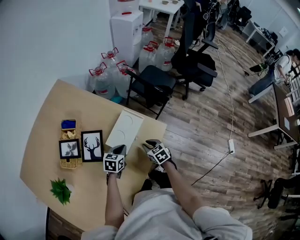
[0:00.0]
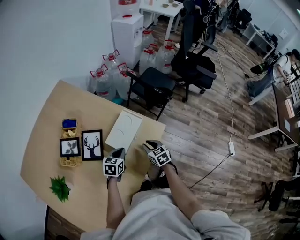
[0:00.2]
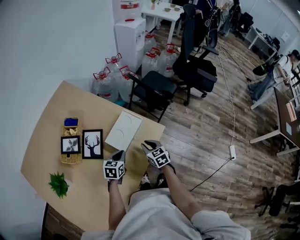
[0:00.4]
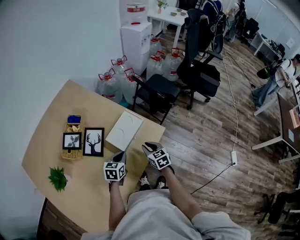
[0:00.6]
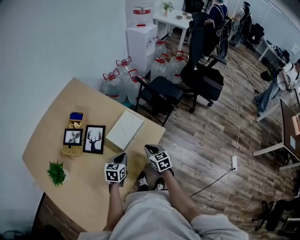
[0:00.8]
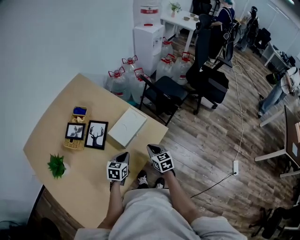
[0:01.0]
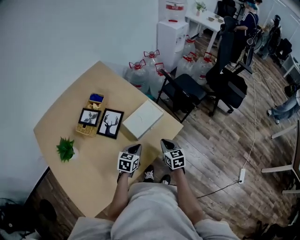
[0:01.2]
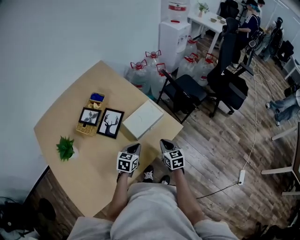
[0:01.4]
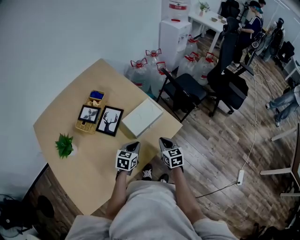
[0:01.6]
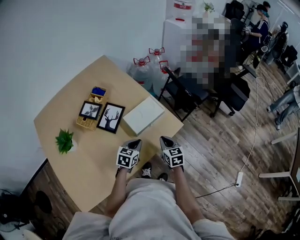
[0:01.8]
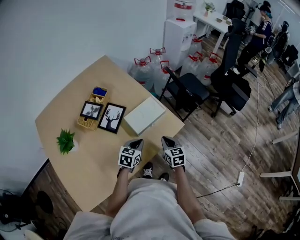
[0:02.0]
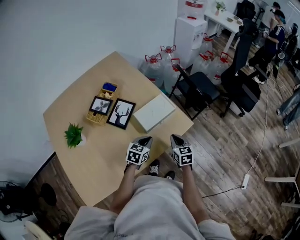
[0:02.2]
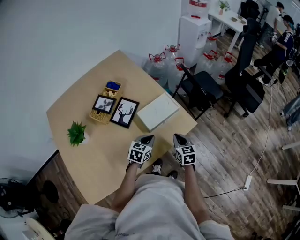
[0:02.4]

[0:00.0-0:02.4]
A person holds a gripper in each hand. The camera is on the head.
0.0 to 1.2 s: The left gripper goes approximately 10 cm backward. The right gripper heads upward, covering about 10 cm.
1.2 to 2.4 s: There are only small adjustments of the grippers.

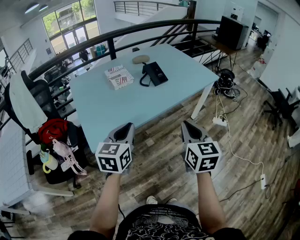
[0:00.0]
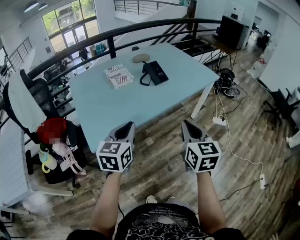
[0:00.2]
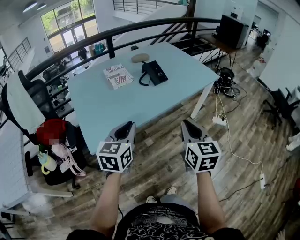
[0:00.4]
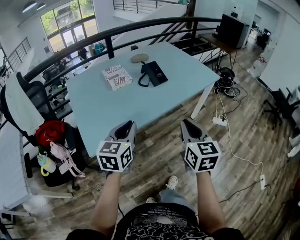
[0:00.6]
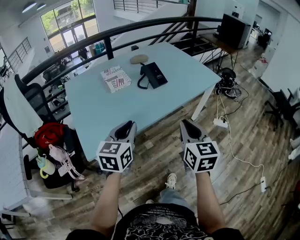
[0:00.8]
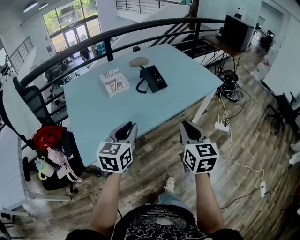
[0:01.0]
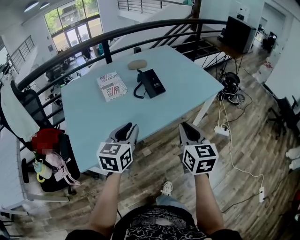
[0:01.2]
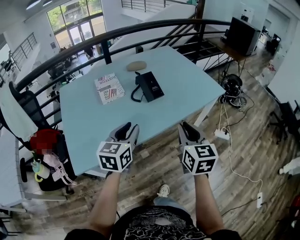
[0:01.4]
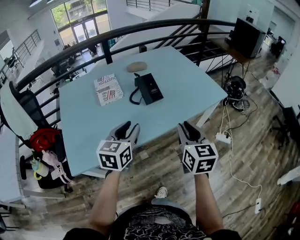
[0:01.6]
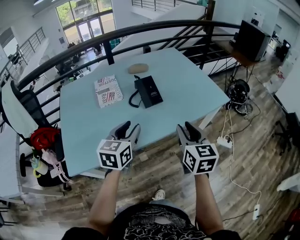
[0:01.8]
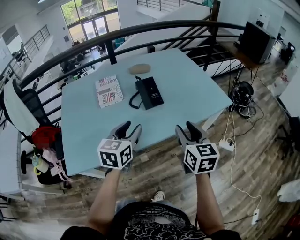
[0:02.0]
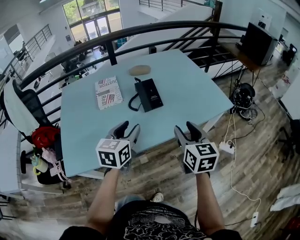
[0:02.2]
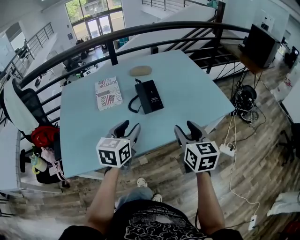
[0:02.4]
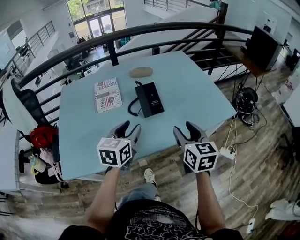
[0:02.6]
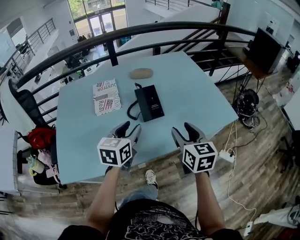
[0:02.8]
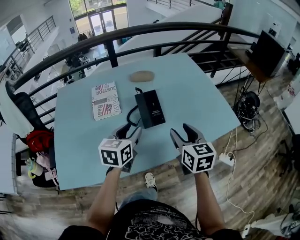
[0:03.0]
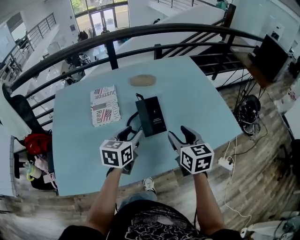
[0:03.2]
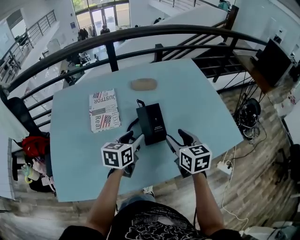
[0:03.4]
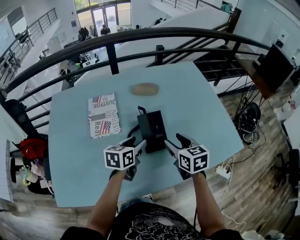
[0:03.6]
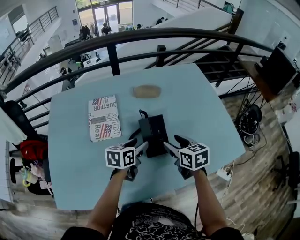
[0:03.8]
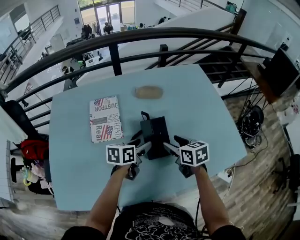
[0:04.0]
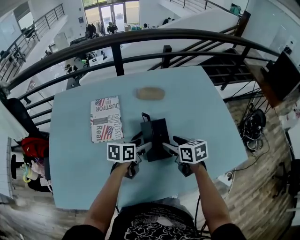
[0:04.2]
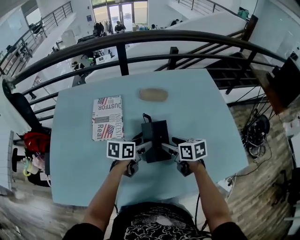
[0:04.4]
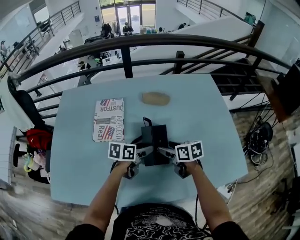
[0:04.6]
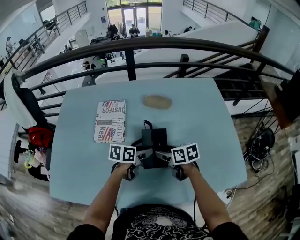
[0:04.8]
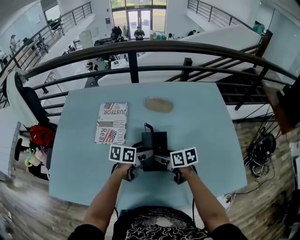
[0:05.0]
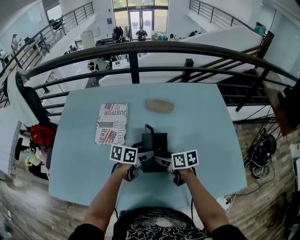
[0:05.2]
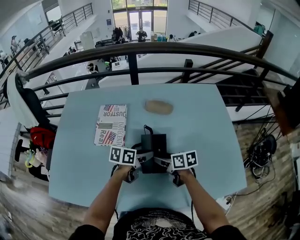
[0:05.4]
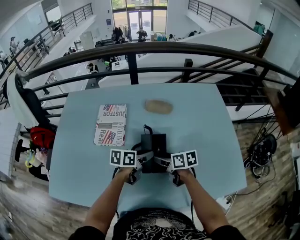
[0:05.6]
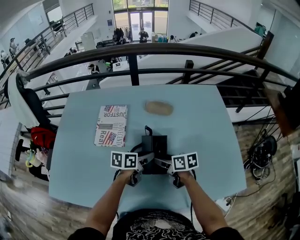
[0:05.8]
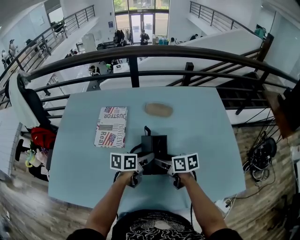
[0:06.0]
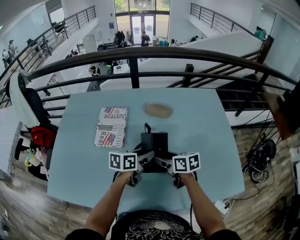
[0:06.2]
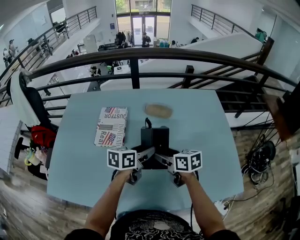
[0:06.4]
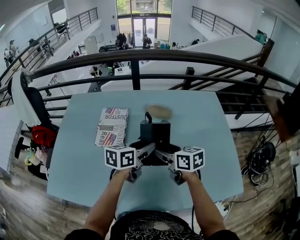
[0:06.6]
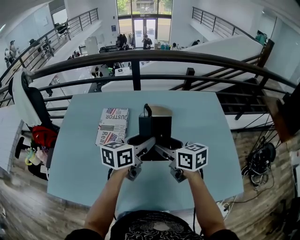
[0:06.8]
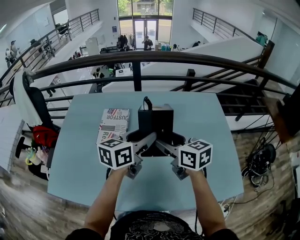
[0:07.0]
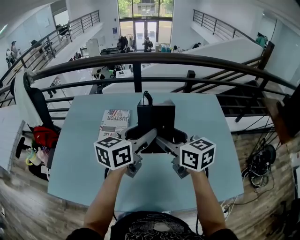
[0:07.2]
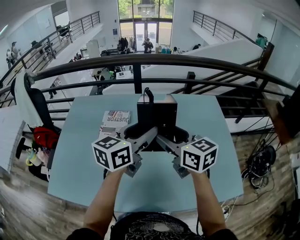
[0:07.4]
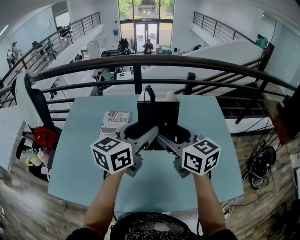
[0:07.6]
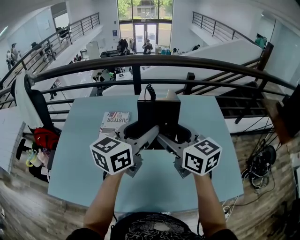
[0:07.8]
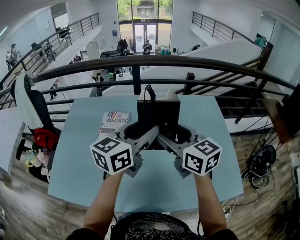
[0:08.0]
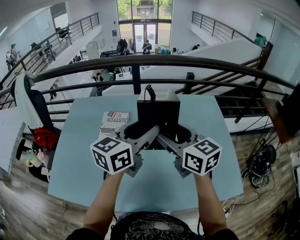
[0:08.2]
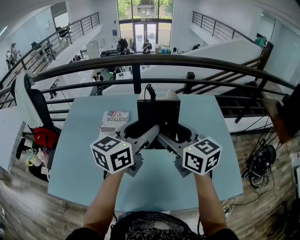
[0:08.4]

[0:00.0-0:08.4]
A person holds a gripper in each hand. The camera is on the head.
0.0 to 1.4 s: The grippers both shift forward by some 20 cm.
1.4 to 2.8 s: The two grippers go approximately 20 cm forward. The right gripper opens its fingers.
2.8 to 4.2 s: Both grippers travel together forward and downward, about 25 cm. The right gripper changes its angle by approximately 30 degrees. The left gripper rotates some 30 degrees.
4.2 to 5.6 s: The right gripper changes place by some 5 cm, and changes its angle by roughly 20 degrees.
5.6 to 7.0 s: The two grippers go about 20 cm upward. The left gripper turns by about 30 degrees. Meanwhile the right gripper changes its angle by some 30 degrees.
7.0 to 8.4 s: Both grippers move upward, some 10 cm.

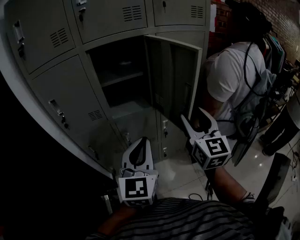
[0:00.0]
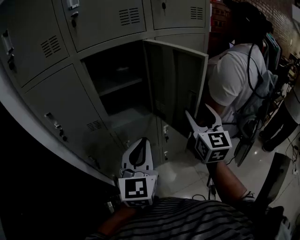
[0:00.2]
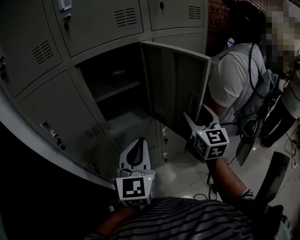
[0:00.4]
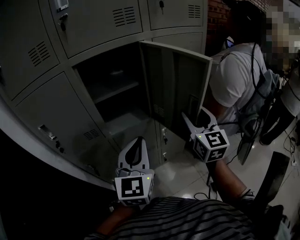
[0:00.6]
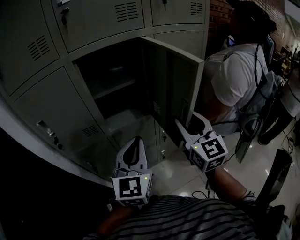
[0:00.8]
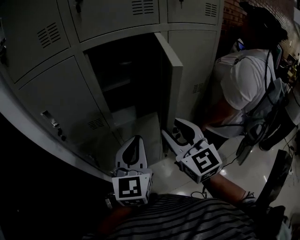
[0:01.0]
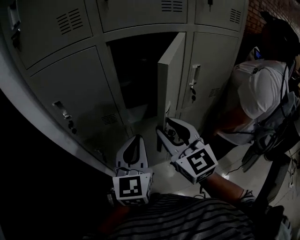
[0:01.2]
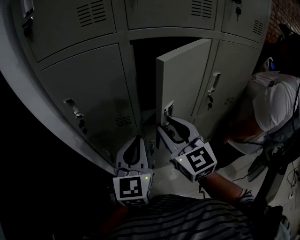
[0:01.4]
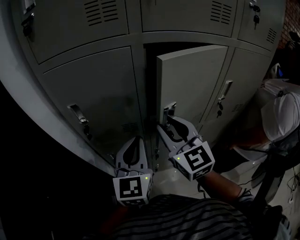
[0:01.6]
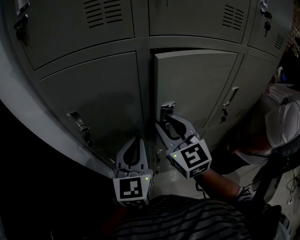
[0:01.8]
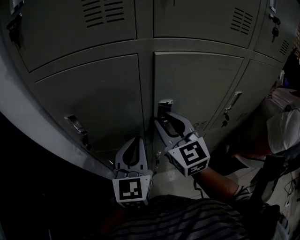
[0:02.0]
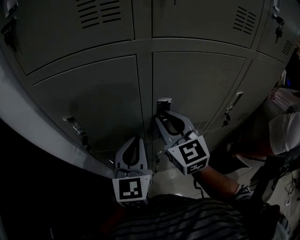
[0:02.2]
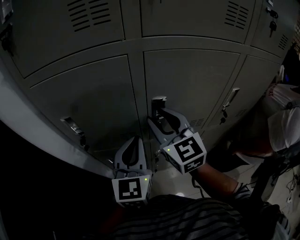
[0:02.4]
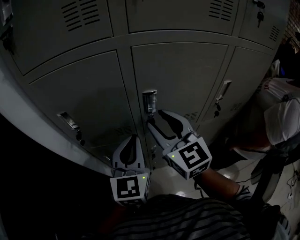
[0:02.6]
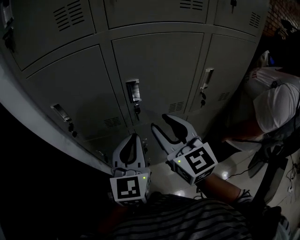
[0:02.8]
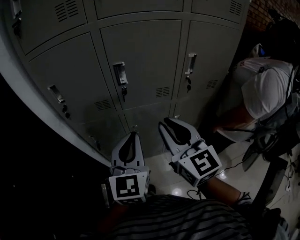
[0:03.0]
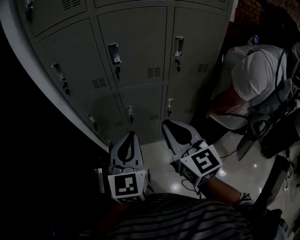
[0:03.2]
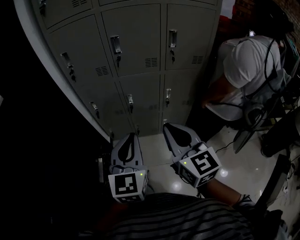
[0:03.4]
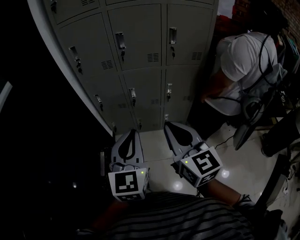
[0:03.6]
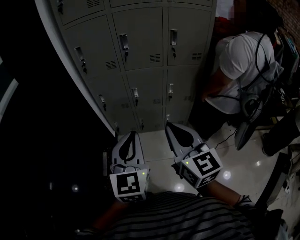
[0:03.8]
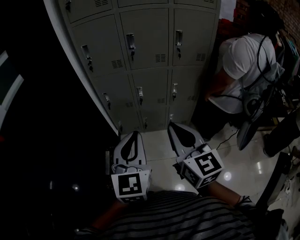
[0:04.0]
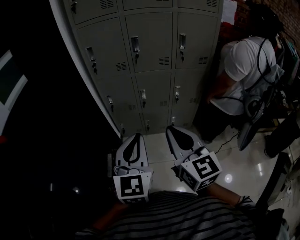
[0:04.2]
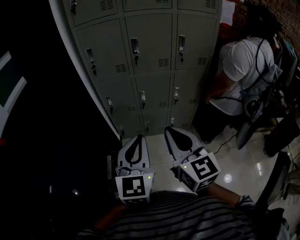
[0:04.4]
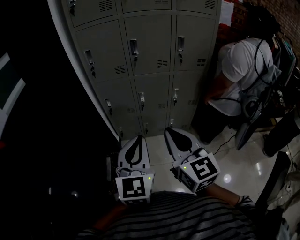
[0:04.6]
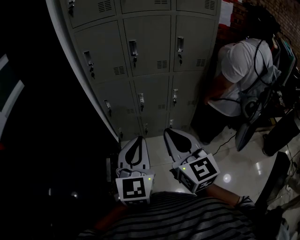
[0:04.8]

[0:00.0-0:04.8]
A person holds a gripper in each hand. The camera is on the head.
0.0 to 1.6 s: The left gripper moves roughly 25 cm; the right gripper moves approximately 35 cm, changes its angle by approximately 30 degrees, and closes its fingers.
1.6 to 3.2 s: The grippers both shift backward and to the right by roughly 30 cm. The right gripper closes its fingers.
3.2 to 4.8 s: The grippers both shift backward by approximately 20 cm.

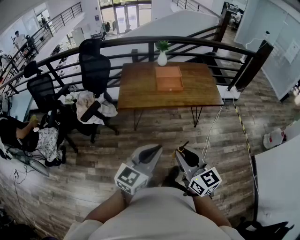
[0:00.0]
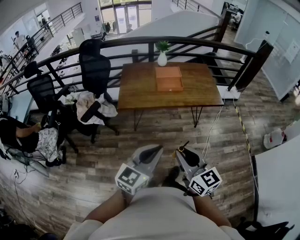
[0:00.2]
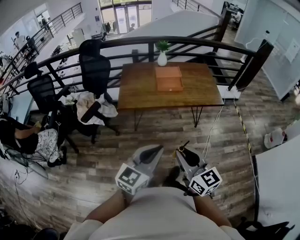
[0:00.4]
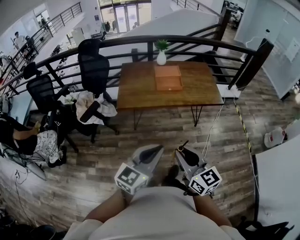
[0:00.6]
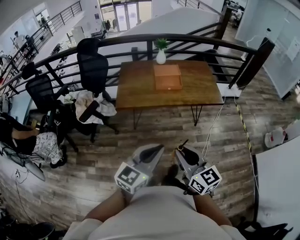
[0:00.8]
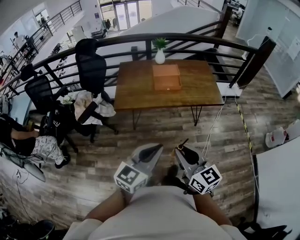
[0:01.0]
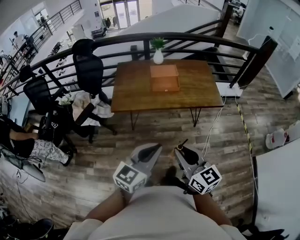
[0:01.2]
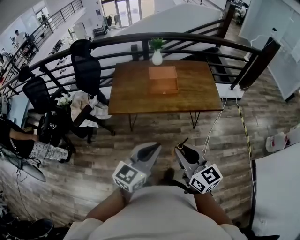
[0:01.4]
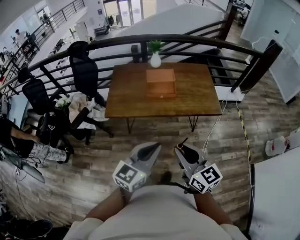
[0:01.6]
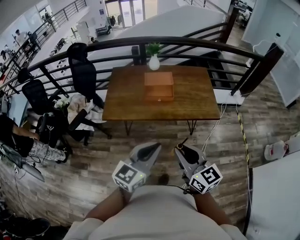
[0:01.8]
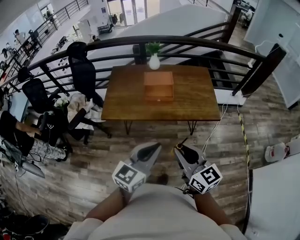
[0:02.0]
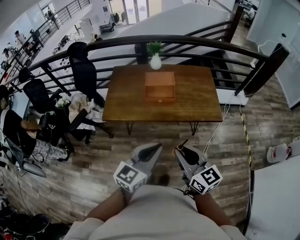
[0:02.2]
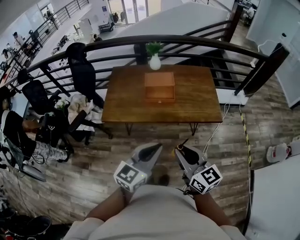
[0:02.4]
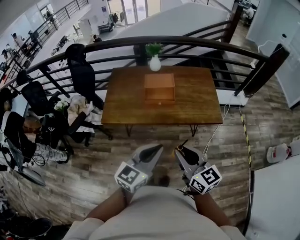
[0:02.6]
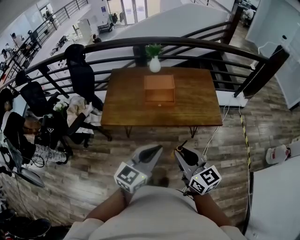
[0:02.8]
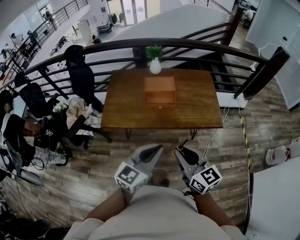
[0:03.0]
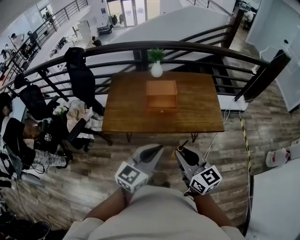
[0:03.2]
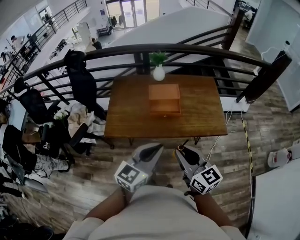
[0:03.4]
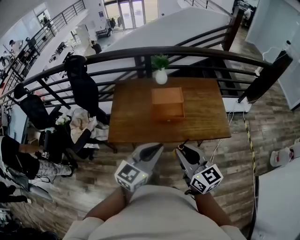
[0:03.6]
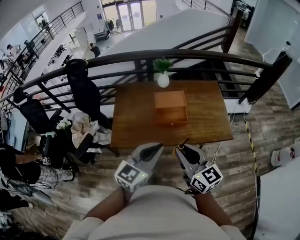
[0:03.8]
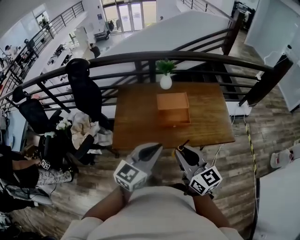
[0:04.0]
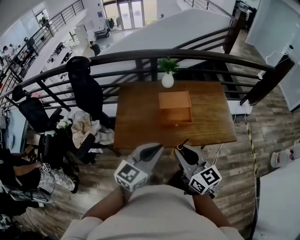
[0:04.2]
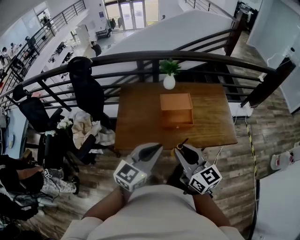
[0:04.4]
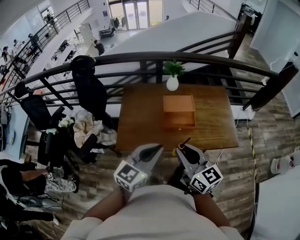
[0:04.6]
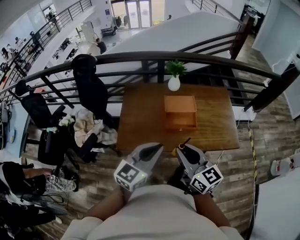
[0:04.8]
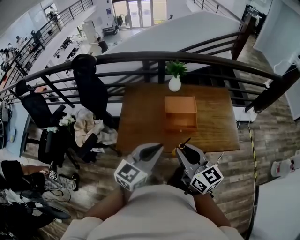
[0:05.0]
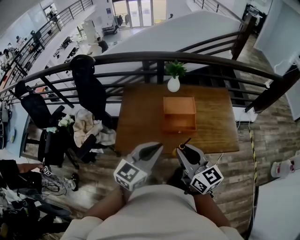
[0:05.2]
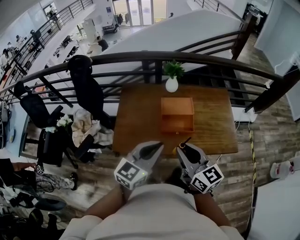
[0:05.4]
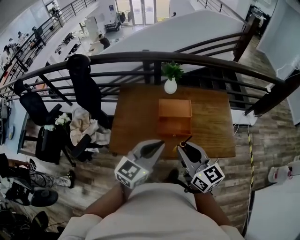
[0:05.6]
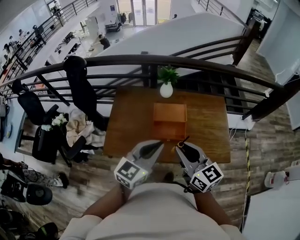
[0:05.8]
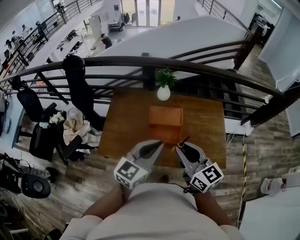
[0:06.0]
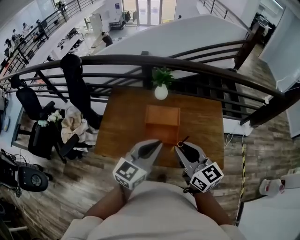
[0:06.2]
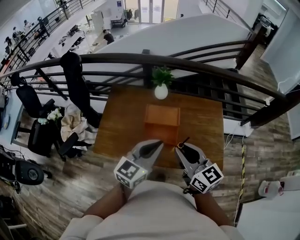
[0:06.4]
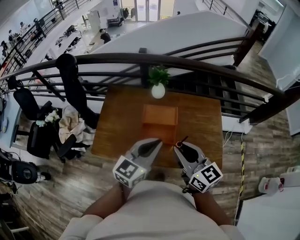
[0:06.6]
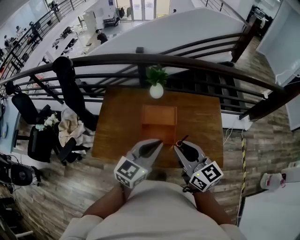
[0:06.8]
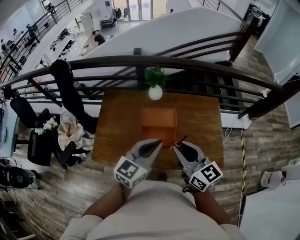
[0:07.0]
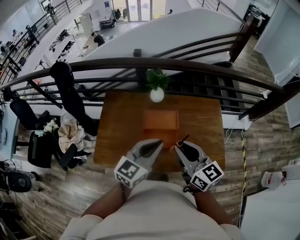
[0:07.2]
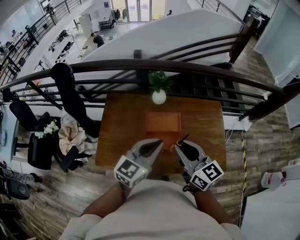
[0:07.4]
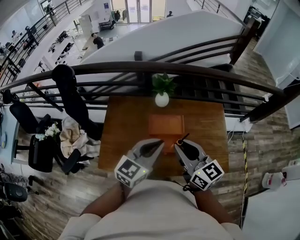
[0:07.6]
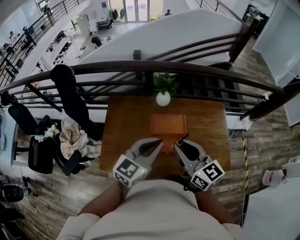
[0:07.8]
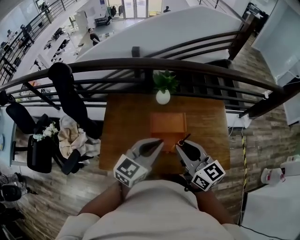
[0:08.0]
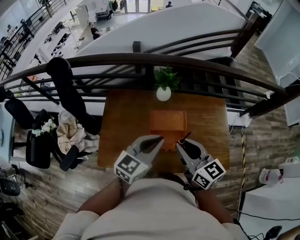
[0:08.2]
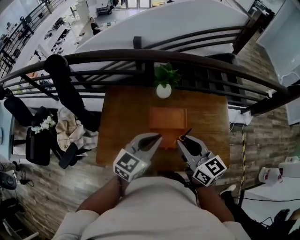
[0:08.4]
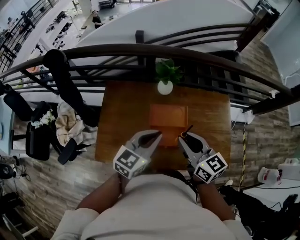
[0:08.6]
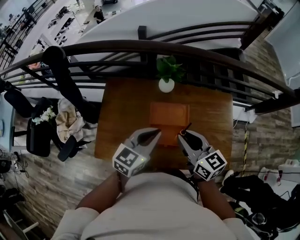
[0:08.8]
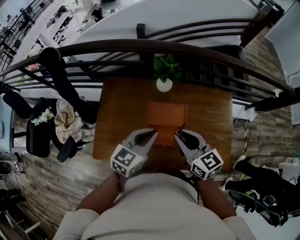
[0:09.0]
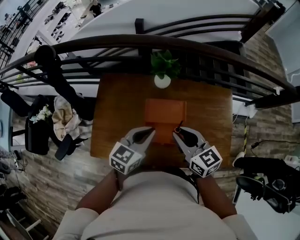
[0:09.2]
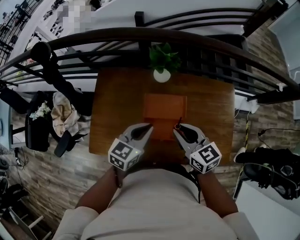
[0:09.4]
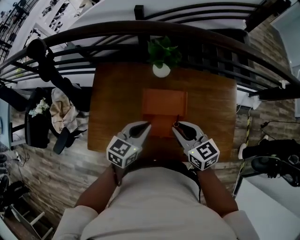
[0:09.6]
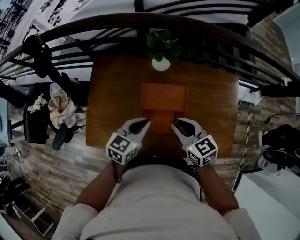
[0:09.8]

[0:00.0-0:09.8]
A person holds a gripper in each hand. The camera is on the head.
0.0 to 1.4 s: The two grippers go some 15 cm forward and to the right.
1.4 to 2.8 s: The grippers both shift forward and to the right by about 15 cm.
2.8 to 4.2 s: The two grippers go approximately 25 cm to the left and forward.
4.2 to 5.6 s: The grippers both shift forward by approximately 10 cm.
5.6 to 7.0 s: Both grippers move forward and to the right, about 15 cm.
7.0 to 8.4 s: Both grippers move forward and to the left, roughly 10 cm.
8.4 to 9.8 s: The two grippers go approximately 20 cm downward and forward. The right gripper changes its angle by some 20 degrees. Meanwhile the left gripper turns by roughly 20 degrees.
